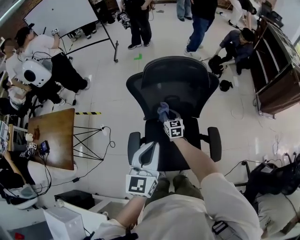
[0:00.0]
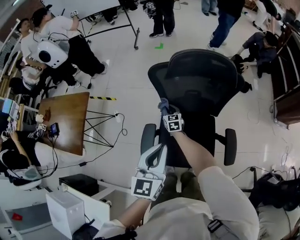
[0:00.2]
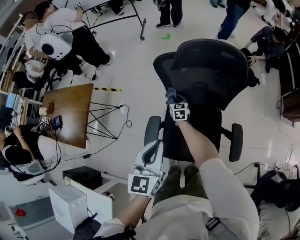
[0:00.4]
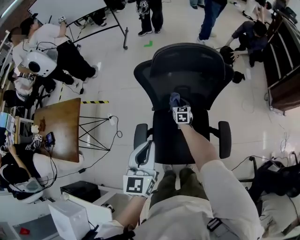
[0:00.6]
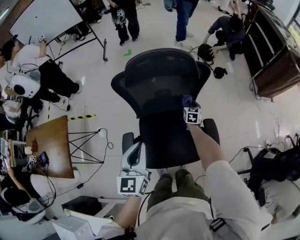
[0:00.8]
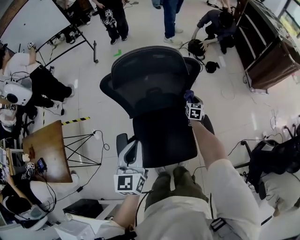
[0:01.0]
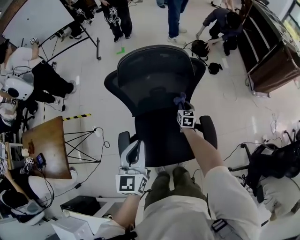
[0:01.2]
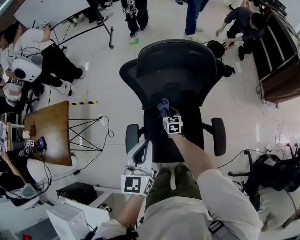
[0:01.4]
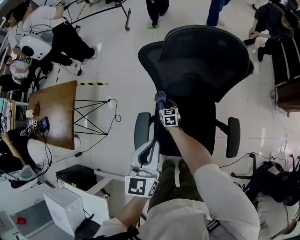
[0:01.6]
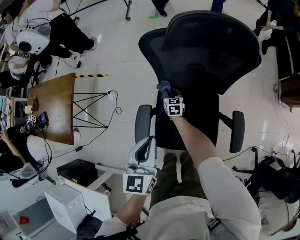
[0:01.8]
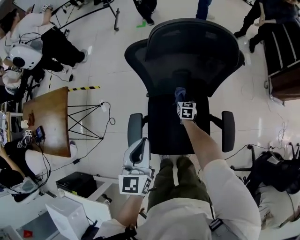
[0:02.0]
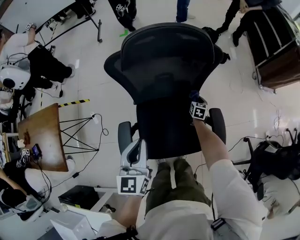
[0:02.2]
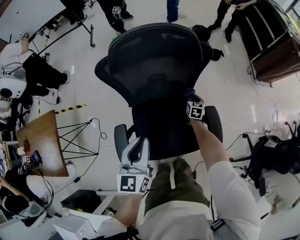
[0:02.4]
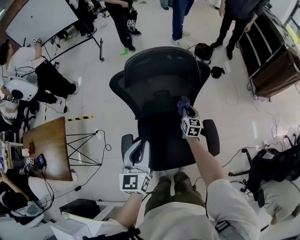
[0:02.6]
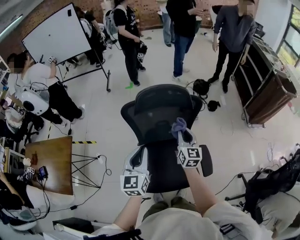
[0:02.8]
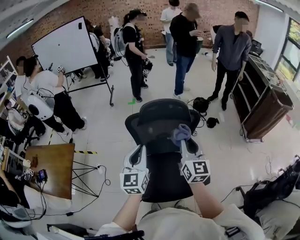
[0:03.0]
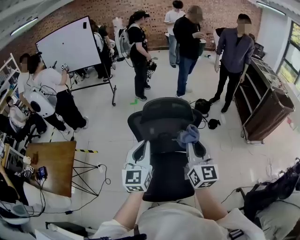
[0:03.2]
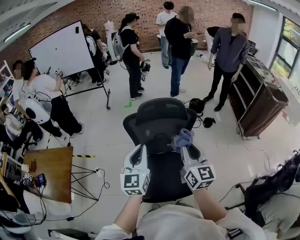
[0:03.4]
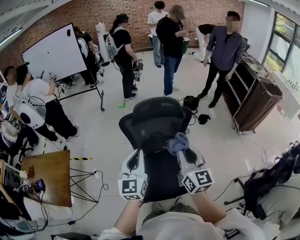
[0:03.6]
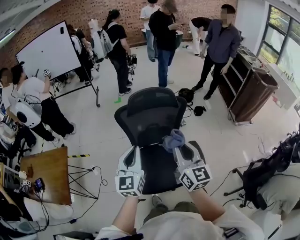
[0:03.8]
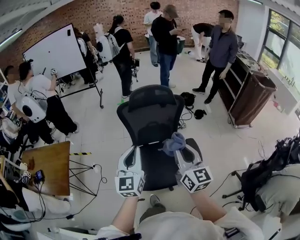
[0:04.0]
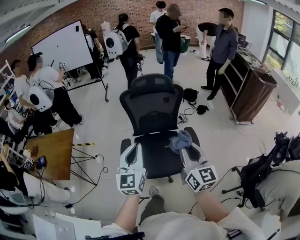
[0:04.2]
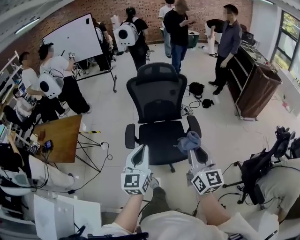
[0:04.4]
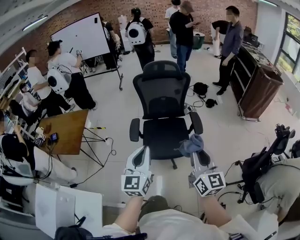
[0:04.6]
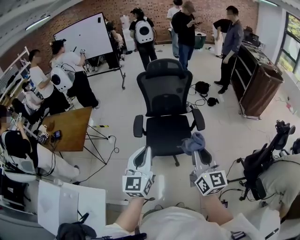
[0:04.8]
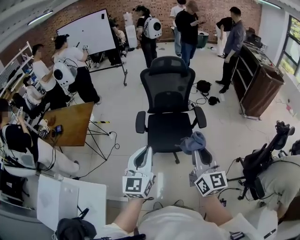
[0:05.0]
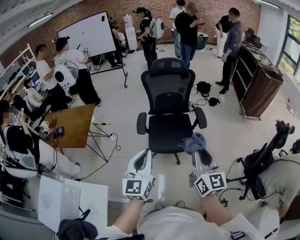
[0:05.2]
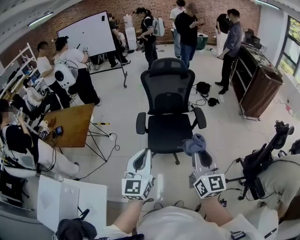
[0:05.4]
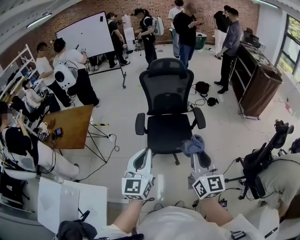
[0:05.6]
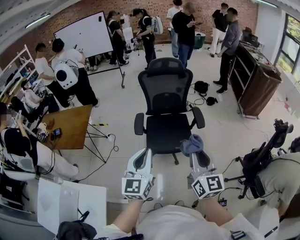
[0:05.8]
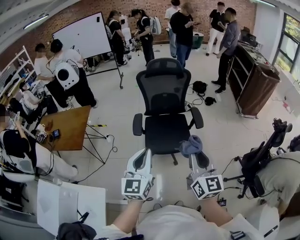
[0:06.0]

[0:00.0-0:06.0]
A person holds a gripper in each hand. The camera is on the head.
0:00.0 to 0:01.6: The right gripper swings left and right, approximately 40 cm each way, with 2 reversals. Meanwhile the left gripper heads downward, to the left and forward, covering approximately 15 cm.
0:01.6 to 0:03.0: The left gripper shifts about 20 cm backward and upward, while the right gripper moves upward and backward, roughly 60 cm, and angles its fingers upward, by about 40 degrees.
0:03.0 to 0:04.4: Both grippers are carried backward, some 40 cm.
0:04.4 to 0:06.0: The two grippers go some 15 cm backward.

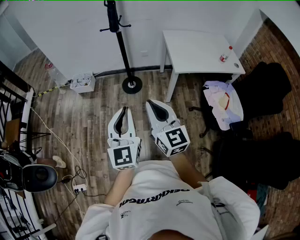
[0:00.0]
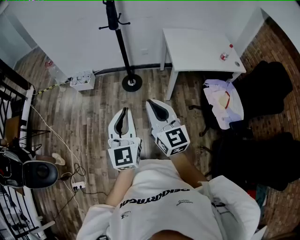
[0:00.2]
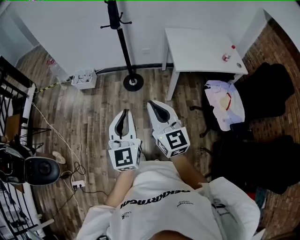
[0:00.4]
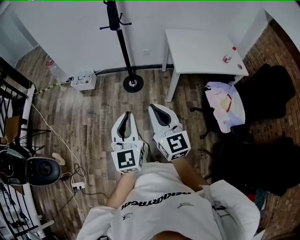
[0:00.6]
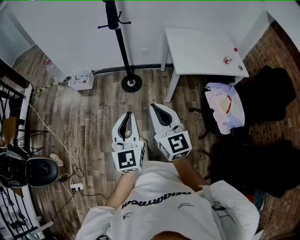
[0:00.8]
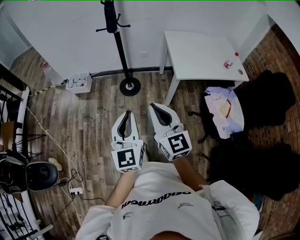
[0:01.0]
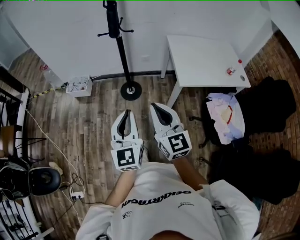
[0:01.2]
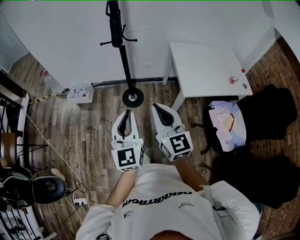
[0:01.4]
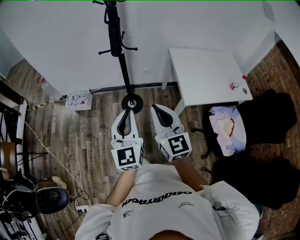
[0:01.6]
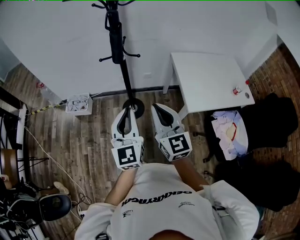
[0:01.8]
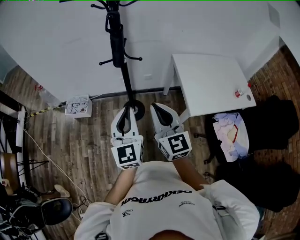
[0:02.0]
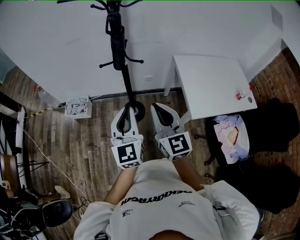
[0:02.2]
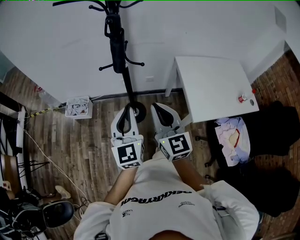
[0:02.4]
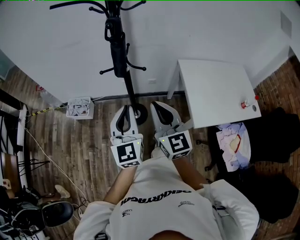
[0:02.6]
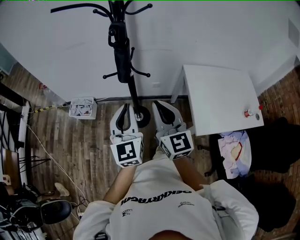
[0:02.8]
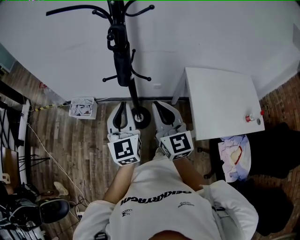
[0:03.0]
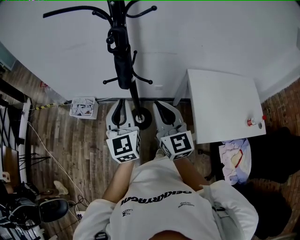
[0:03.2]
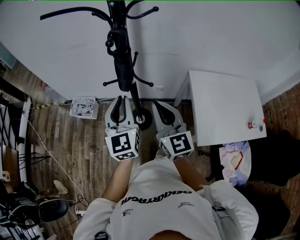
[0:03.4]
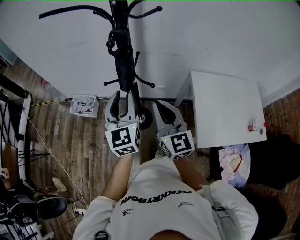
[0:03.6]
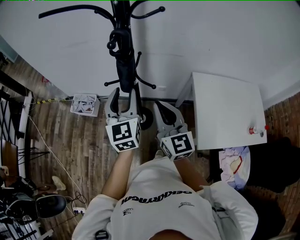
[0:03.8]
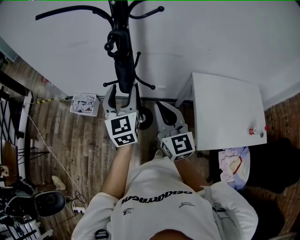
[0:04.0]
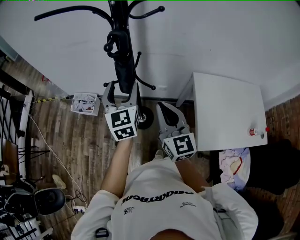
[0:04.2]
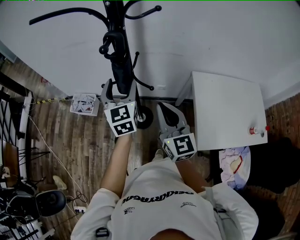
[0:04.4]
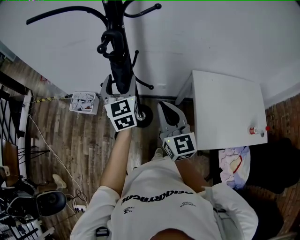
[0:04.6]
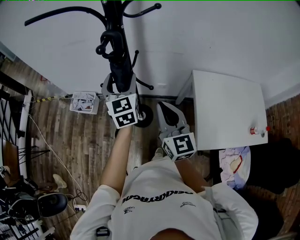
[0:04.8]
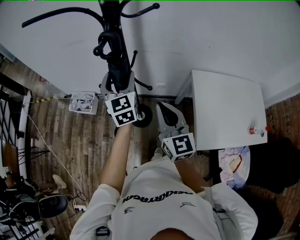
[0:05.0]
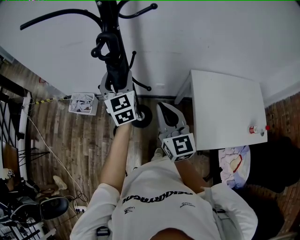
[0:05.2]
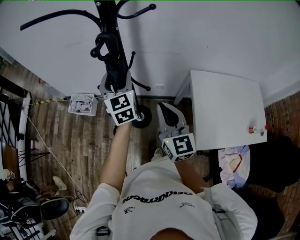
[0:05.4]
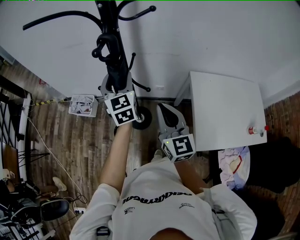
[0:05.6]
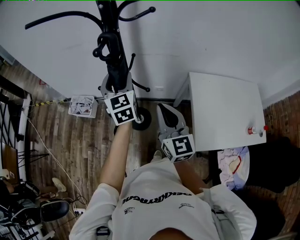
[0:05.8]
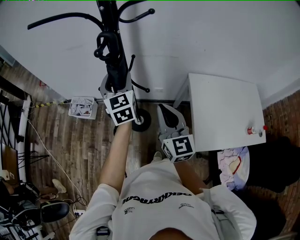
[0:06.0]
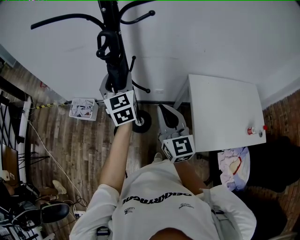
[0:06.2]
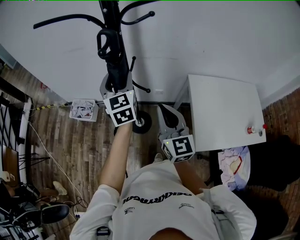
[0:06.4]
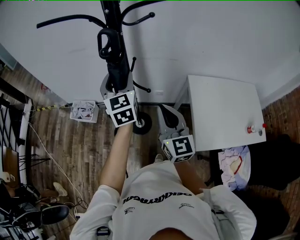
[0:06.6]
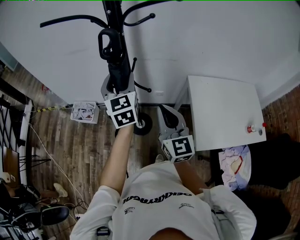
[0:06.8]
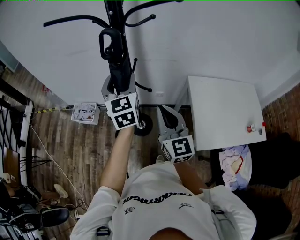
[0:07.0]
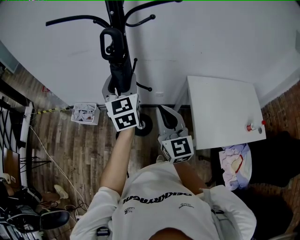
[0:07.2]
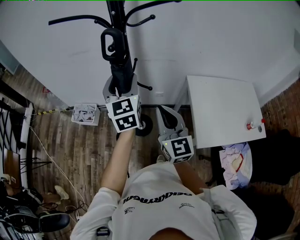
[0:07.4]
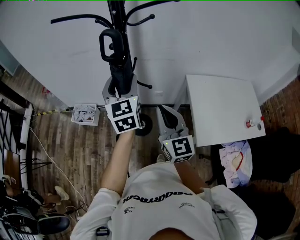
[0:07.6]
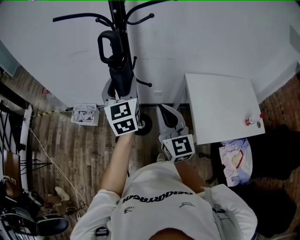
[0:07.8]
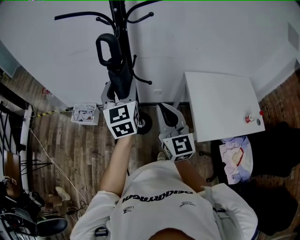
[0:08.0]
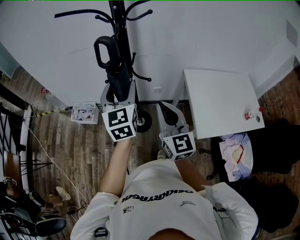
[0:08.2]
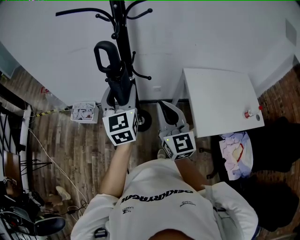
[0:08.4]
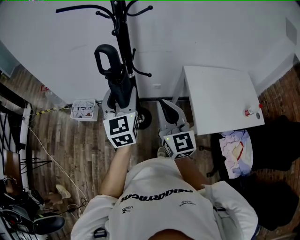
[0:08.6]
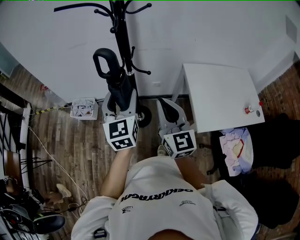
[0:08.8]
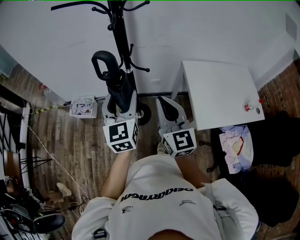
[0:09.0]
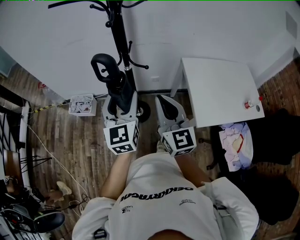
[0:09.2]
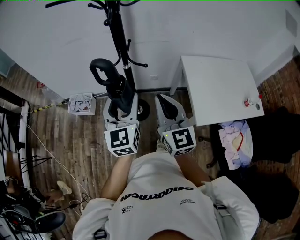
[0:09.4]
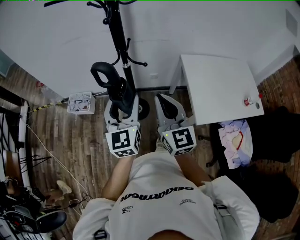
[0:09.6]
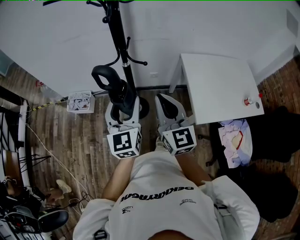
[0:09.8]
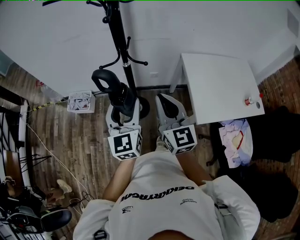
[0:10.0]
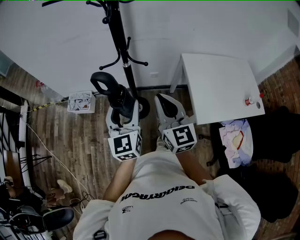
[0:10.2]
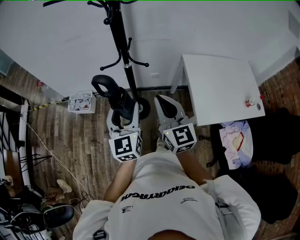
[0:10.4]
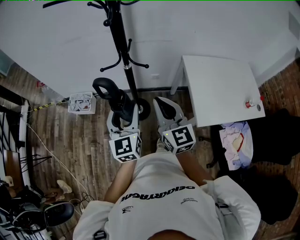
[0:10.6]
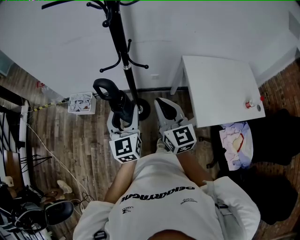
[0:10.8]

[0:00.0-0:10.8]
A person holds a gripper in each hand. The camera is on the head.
0:00.0 to 0:01.6: Both grippers move forward, approximately 30 cm.
0:01.6 to 0:03.0: Both grippers travel together forward, roughly 30 cm.
0:03.0 to 0:04.6: The left gripper is displaced forward by some 20 cm, and opens up, while the right gripper travels forward by roughly 5 cm.
0:04.6 to 0:06.2: There are only small adjustments of the grippers.
0:06.2 to 0:07.8: The left gripper travels backward and upward by approximately 10 cm. Meanwhile the right gripper moves backward, approximately 5 cm.
0:07.8 to 0:09.2: The left gripper heads backward, covering some 10 cm. The right gripper moves backward, some 5 cm.
0:09.2 to 0:10.8: The right gripper changes place by about 5 cm, while the left gripper is displaced downward by approximately 5 cm.

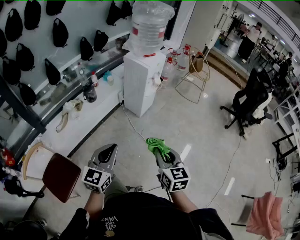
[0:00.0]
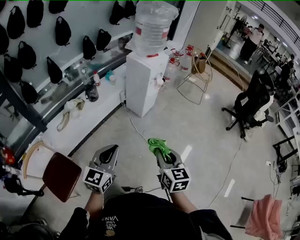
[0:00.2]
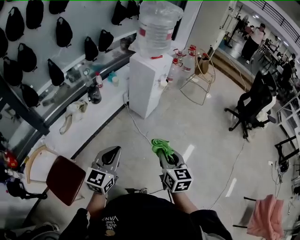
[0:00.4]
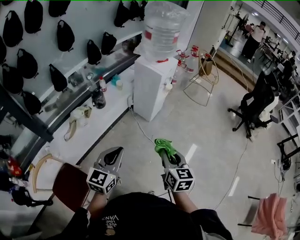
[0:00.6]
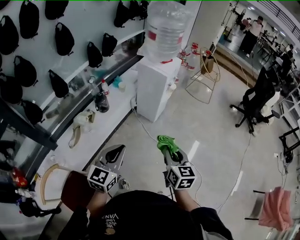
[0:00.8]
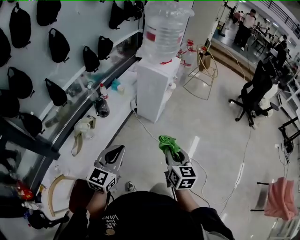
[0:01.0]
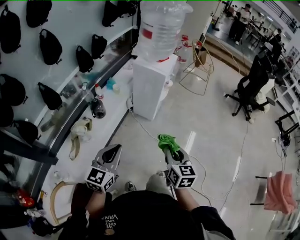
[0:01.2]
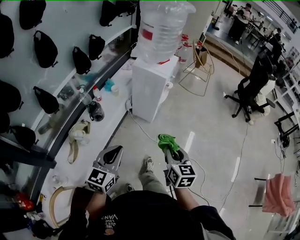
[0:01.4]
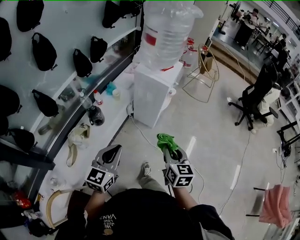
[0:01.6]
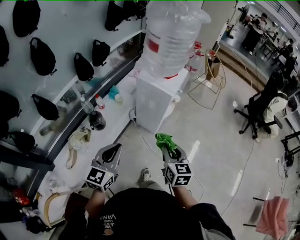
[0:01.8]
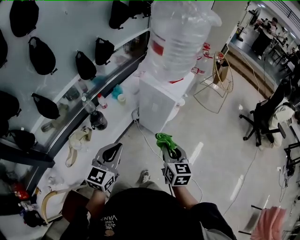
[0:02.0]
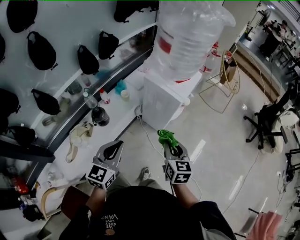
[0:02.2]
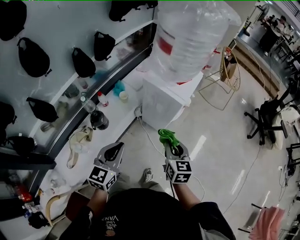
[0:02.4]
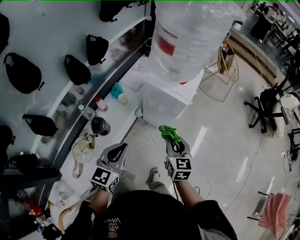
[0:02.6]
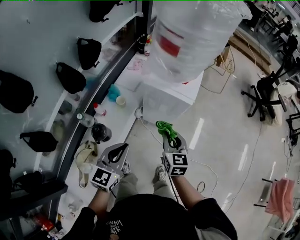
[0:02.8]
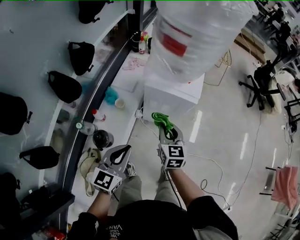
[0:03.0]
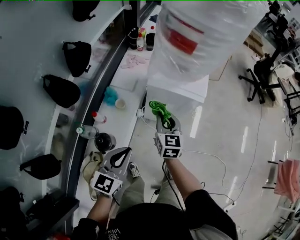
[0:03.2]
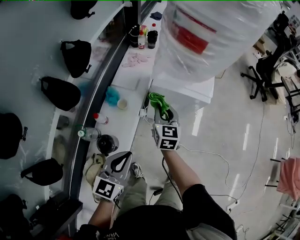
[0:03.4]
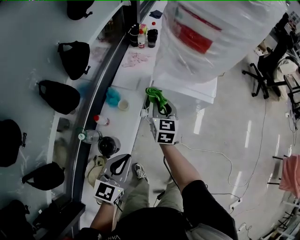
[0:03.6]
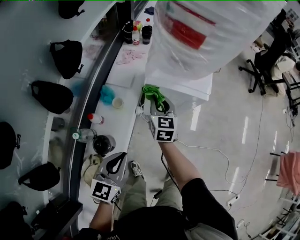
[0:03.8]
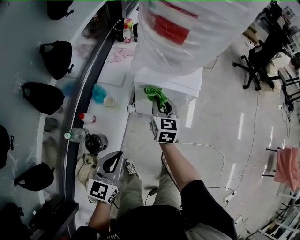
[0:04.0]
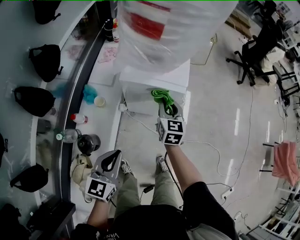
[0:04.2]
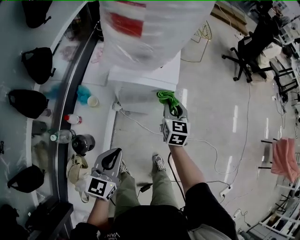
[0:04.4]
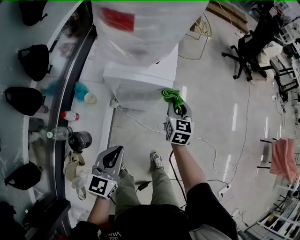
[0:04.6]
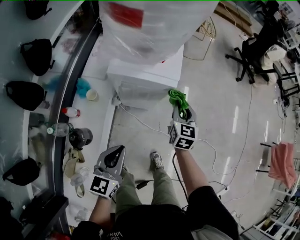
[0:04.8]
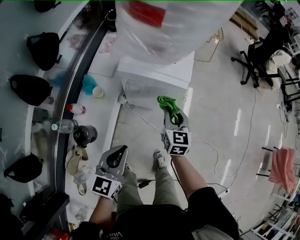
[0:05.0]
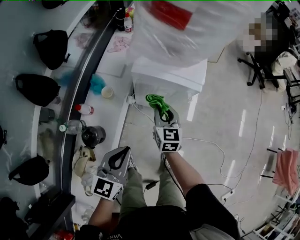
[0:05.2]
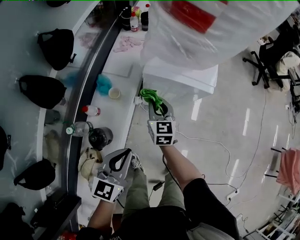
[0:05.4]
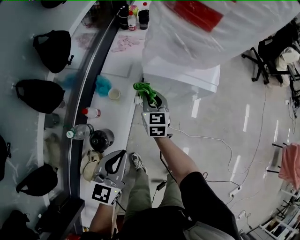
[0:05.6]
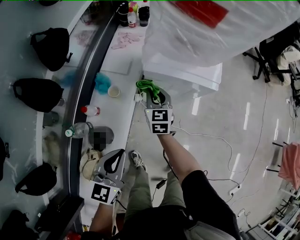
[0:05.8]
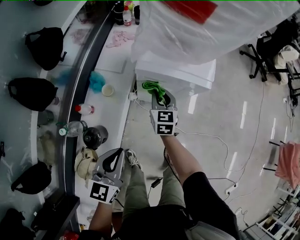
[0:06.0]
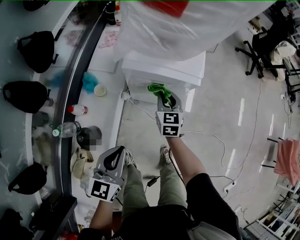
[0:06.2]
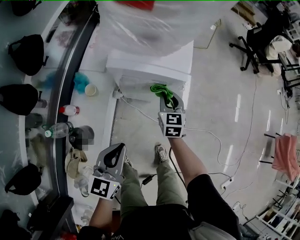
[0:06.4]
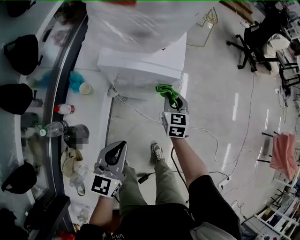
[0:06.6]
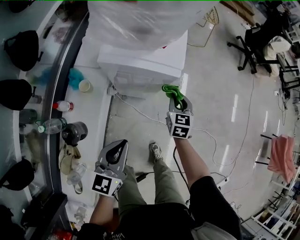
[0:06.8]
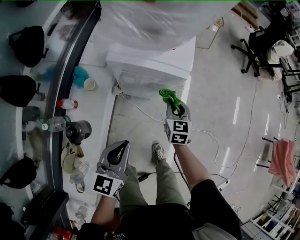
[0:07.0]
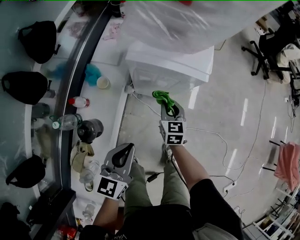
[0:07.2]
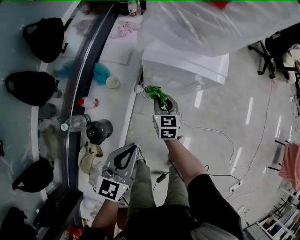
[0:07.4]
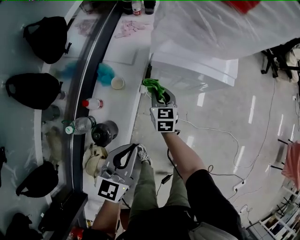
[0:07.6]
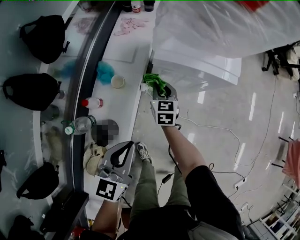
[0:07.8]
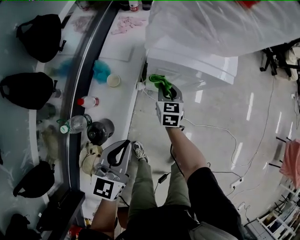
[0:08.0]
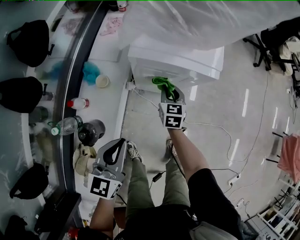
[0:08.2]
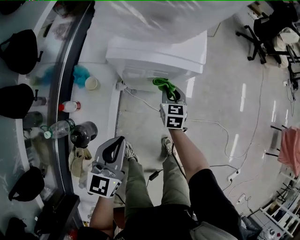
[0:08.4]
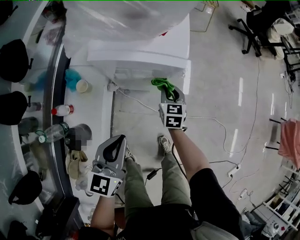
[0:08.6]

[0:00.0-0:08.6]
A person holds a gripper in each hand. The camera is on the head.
0:00.0 to 0:01.4: The grippers both shift to the left and forward by some 25 cm. The right gripper changes its angle by about 20 degrees.
0:01.4 to 0:02.8: The two grippers go roughly 30 cm forward.
0:02.8 to 0:04.4: The right gripper goes roughly 15 cm forward and downward, travels to the left and back again, approximately 15 cm each way, and turns by some 20 degrees. The left gripper is displaced downward by some 10 cm, and moves about 10 cm to the left and comes back.
0:04.4 to 0:05.8: The right gripper shifts some 20 cm to the left. The left gripper heads to the left, covering some 10 cm.
0:05.8 to 0:07.2: The left gripper moves to the right, some 10 cm, while the right gripper heads to the right and backward, covering some 15 cm.
0:07.2 to 0:08.6: The right gripper moves to the right, about 10 cm. The left gripper reaches some 10 cm to the left, then returns.
